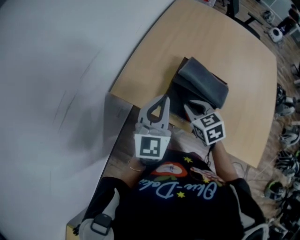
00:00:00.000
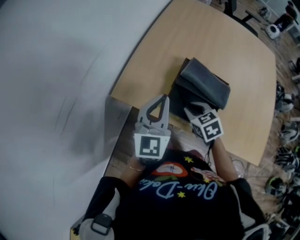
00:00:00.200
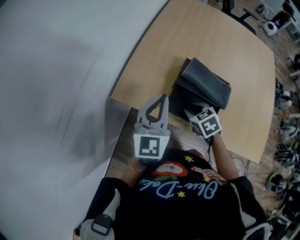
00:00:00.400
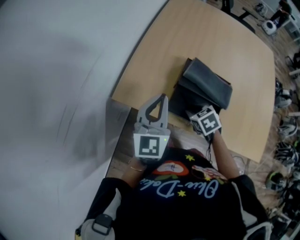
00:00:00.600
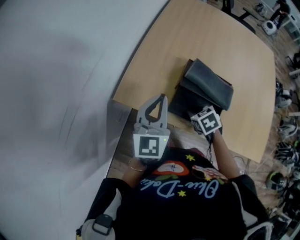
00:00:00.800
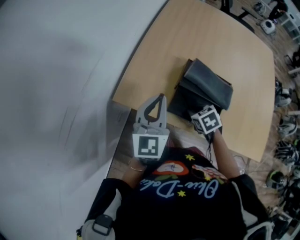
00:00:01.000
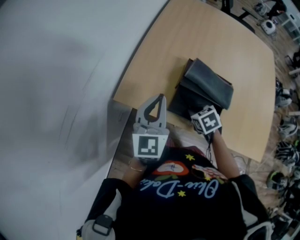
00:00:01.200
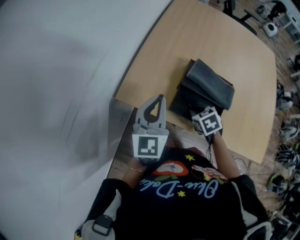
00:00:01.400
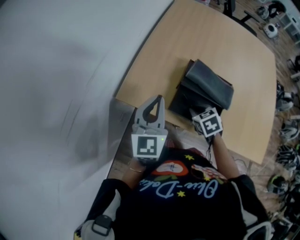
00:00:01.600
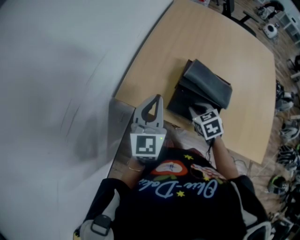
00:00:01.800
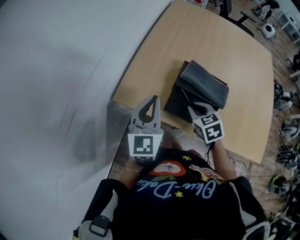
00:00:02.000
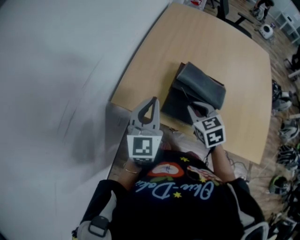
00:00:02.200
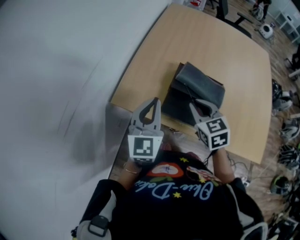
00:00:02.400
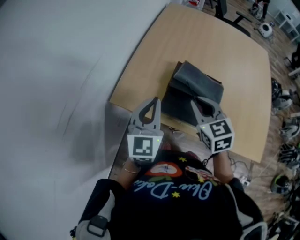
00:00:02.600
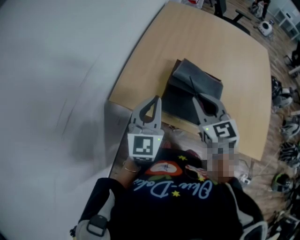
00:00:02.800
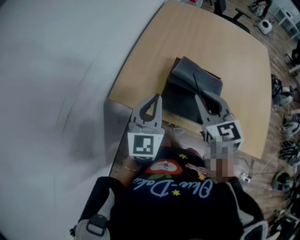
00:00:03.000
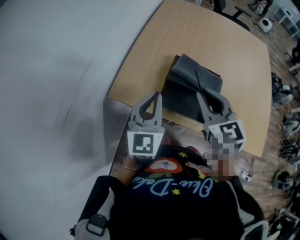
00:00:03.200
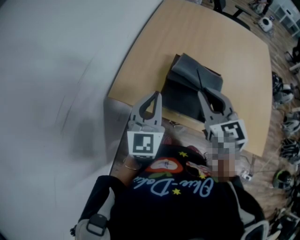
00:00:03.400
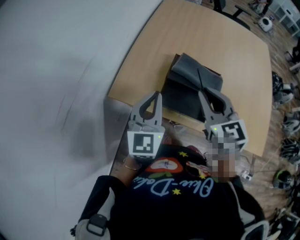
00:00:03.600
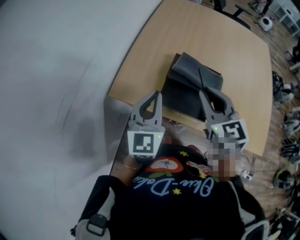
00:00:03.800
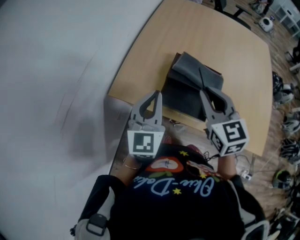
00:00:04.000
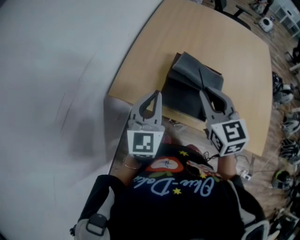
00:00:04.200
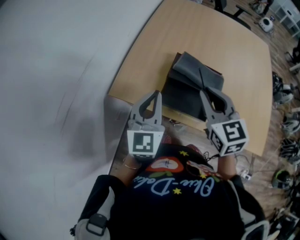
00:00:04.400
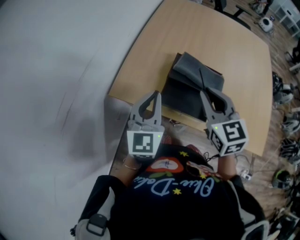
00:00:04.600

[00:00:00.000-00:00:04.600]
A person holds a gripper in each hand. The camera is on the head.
00:00:00.000 to 00:00:01.600: The left gripper shifts about 5 cm to the left, while the right gripper is displaced downward by approximately 5 cm.
00:00:01.600 to 00:00:03.000: The left gripper shifts by approximately 5 cm; the right gripper shifts about 20 cm upward, and points its fingers some 40 degrees further upward.
00:00:03.000 to 00:00:04.600: The two grippers keep their place.

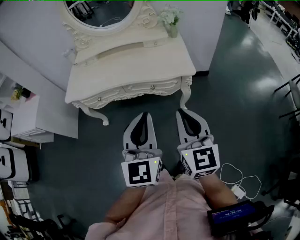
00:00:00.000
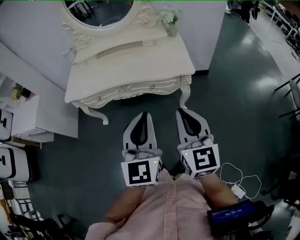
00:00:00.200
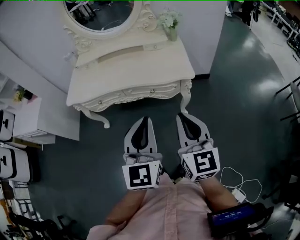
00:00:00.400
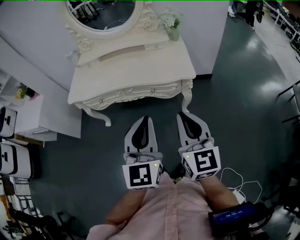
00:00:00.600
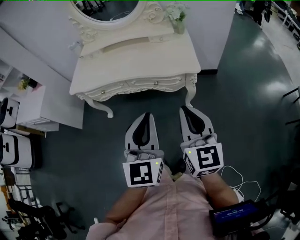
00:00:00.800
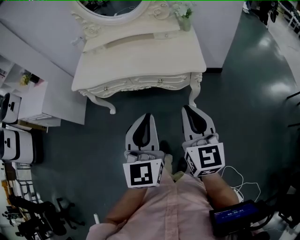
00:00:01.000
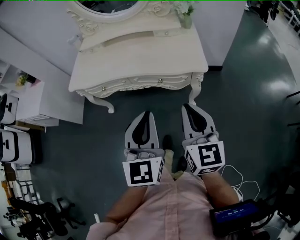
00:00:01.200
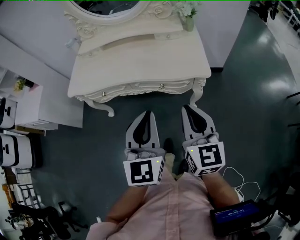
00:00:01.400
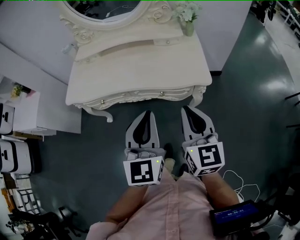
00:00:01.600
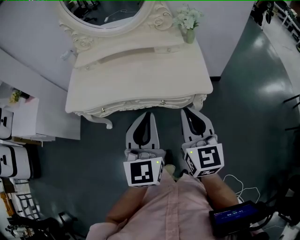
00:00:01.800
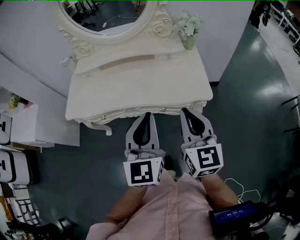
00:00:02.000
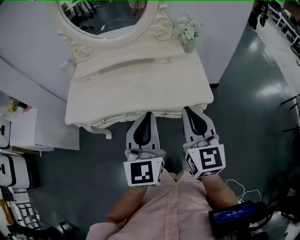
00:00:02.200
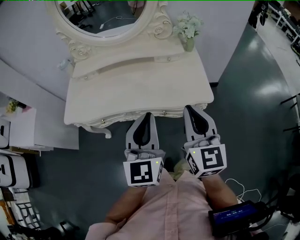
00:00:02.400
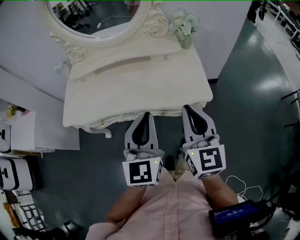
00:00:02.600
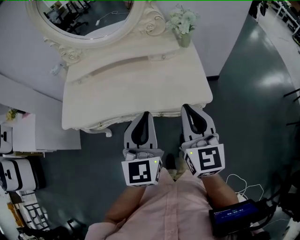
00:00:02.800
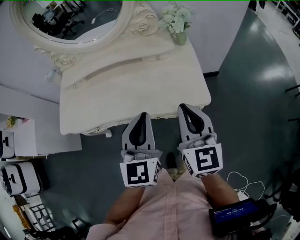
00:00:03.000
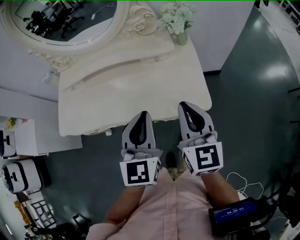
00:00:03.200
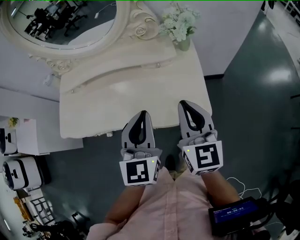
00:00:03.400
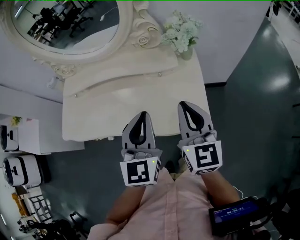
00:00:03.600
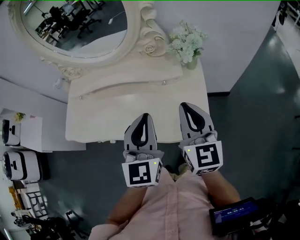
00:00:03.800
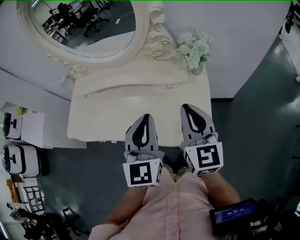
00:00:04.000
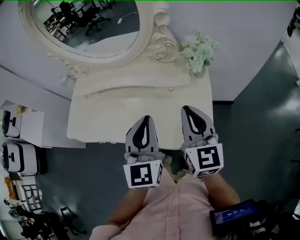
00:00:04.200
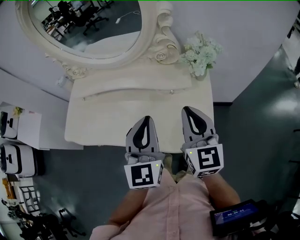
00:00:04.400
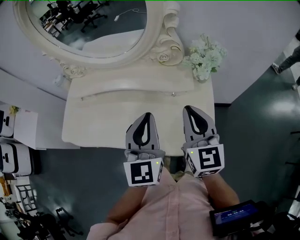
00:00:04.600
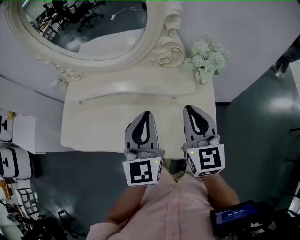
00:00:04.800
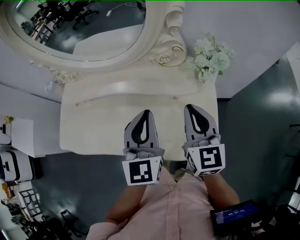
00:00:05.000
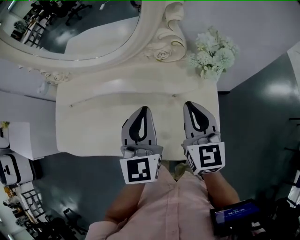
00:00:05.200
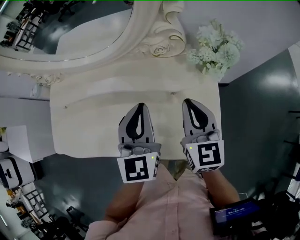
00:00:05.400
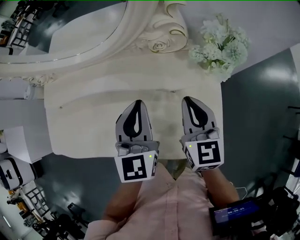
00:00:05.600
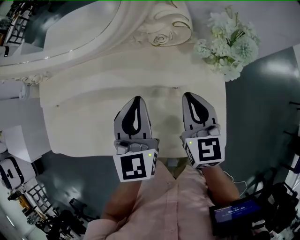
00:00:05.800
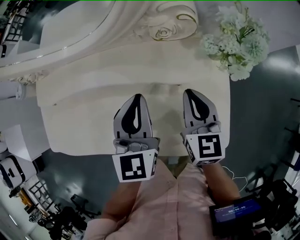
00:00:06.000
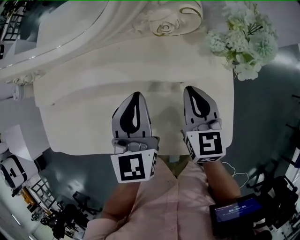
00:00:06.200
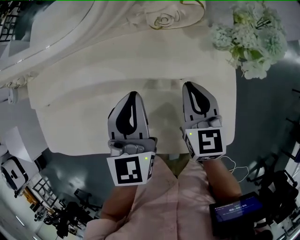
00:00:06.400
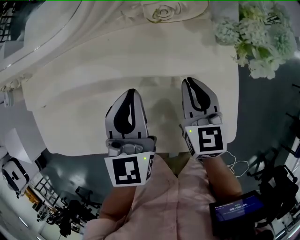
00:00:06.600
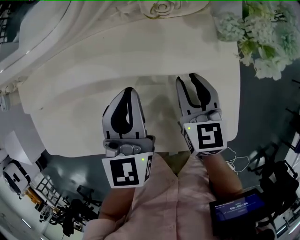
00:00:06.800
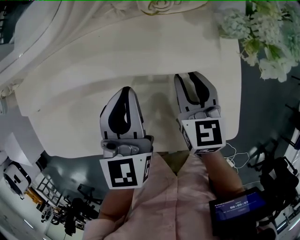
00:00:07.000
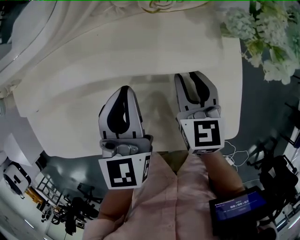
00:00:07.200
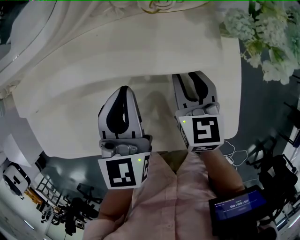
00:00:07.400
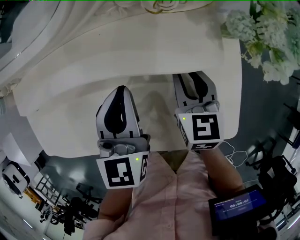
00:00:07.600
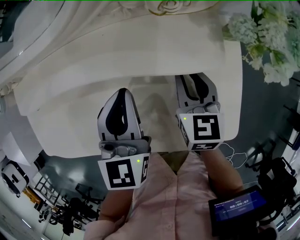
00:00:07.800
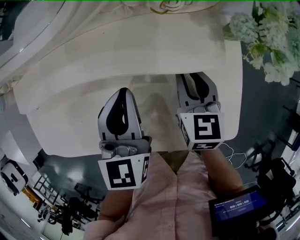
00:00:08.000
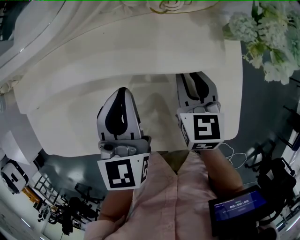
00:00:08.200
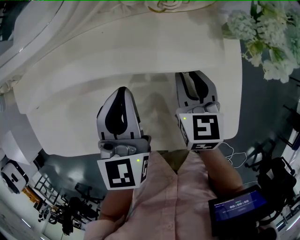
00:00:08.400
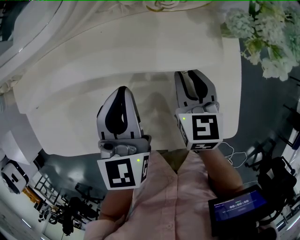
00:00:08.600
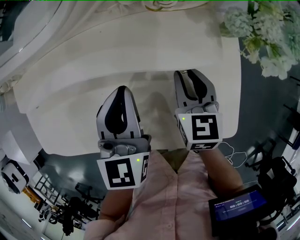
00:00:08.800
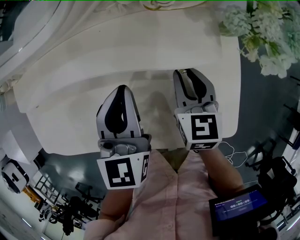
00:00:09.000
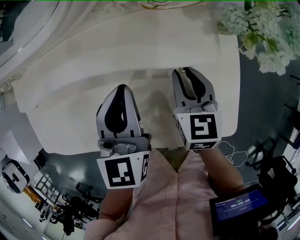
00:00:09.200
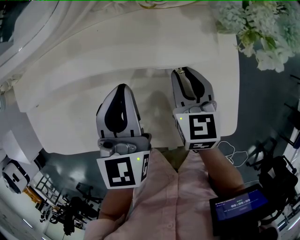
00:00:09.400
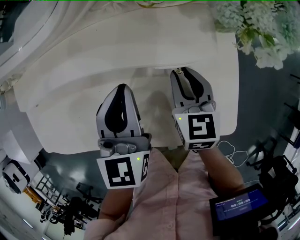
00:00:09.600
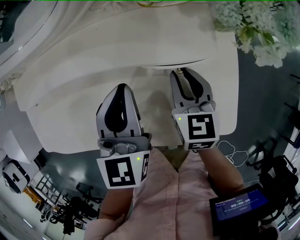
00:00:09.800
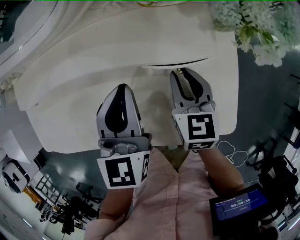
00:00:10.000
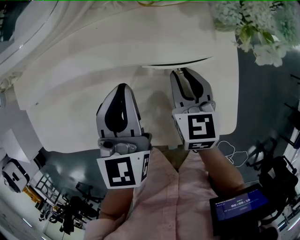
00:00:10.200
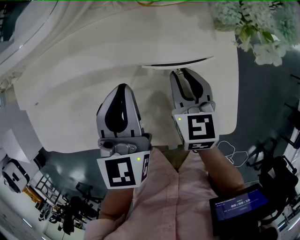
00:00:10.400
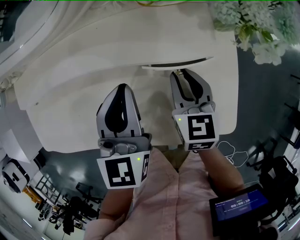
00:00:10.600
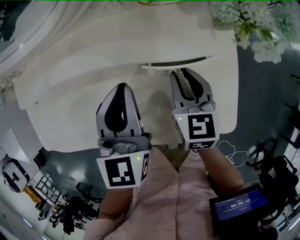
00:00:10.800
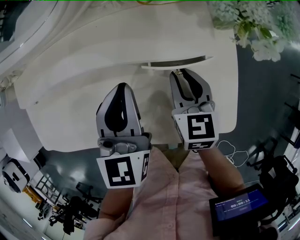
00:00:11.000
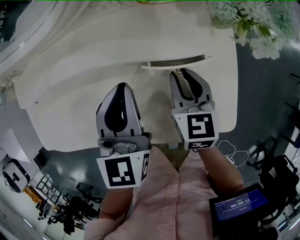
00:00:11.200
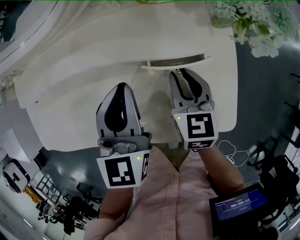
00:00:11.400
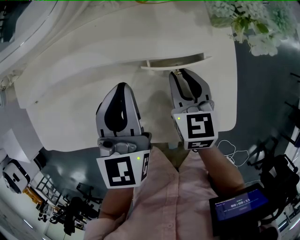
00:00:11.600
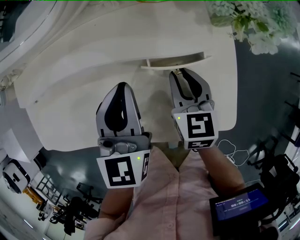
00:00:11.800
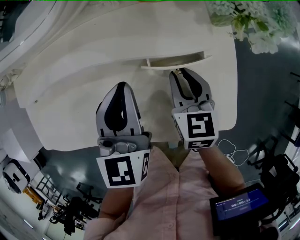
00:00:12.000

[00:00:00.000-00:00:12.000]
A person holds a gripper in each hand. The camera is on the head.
00:00:00.000 to 00:00:01.600: The two grippers go about 15 cm forward.
00:00:01.600 to 00:00:03.000: Both grippers travel together forward, about 15 cm.
00:00:03.000 to 00:00:04.400: Both grippers travel together forward, about 15 cm.
00:00:04.400 to 00:00:06.000: The left gripper moves forward and downward, roughly 20 cm; the right gripper travels downward and forward by some 20 cm, and changes its angle by some 20 degrees.
00:00:06.000 to 00:00:07.600: The two grippers go about 5 cm downward. The right gripper opens.
00:00:07.600 to 00:00:09.000: Neither gripper changes place.
00:00:09.000 to 00:00:12.000: There are only small adjustments of the grippers.

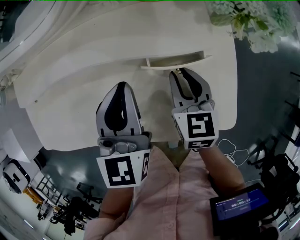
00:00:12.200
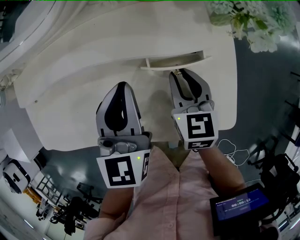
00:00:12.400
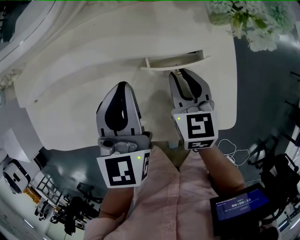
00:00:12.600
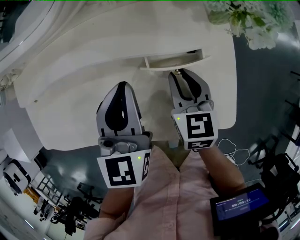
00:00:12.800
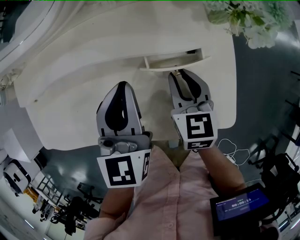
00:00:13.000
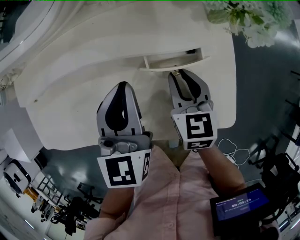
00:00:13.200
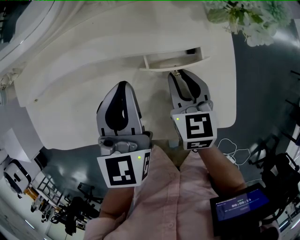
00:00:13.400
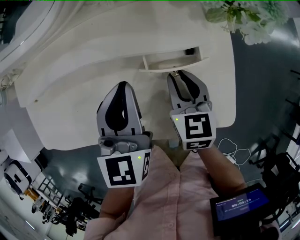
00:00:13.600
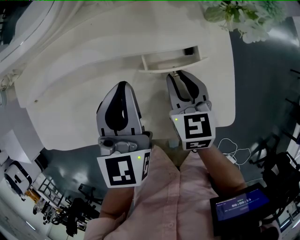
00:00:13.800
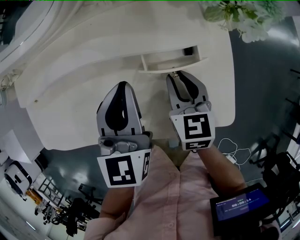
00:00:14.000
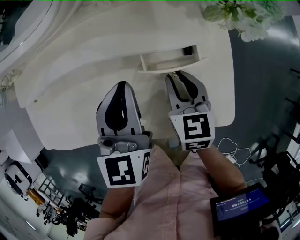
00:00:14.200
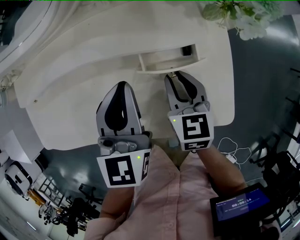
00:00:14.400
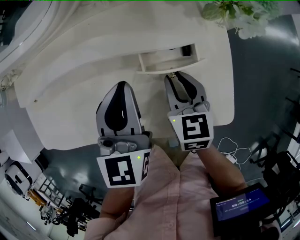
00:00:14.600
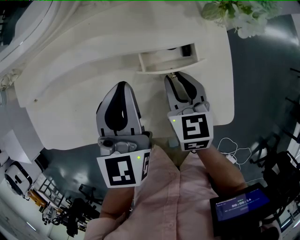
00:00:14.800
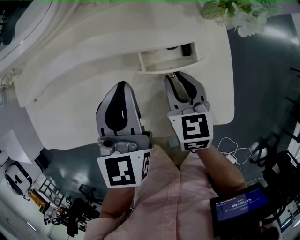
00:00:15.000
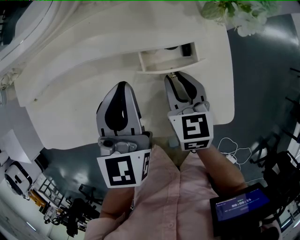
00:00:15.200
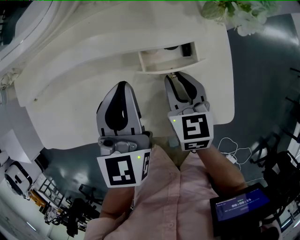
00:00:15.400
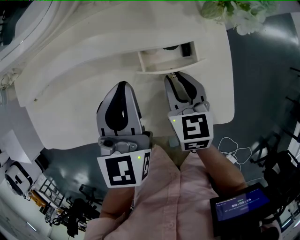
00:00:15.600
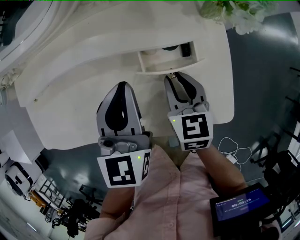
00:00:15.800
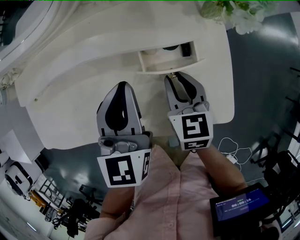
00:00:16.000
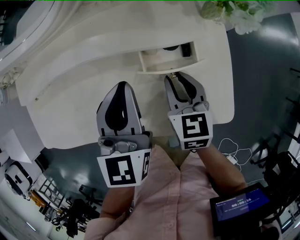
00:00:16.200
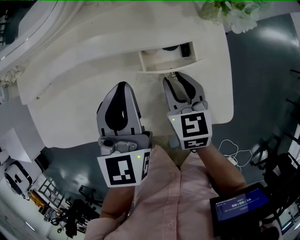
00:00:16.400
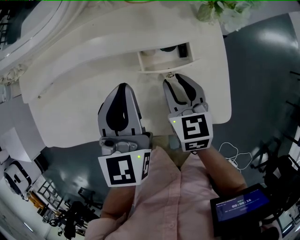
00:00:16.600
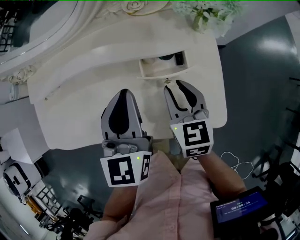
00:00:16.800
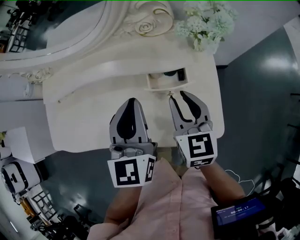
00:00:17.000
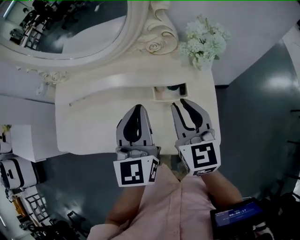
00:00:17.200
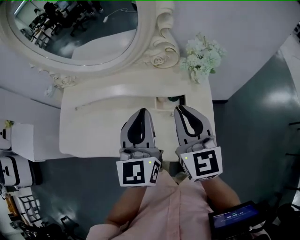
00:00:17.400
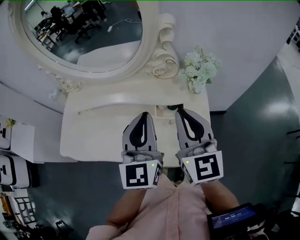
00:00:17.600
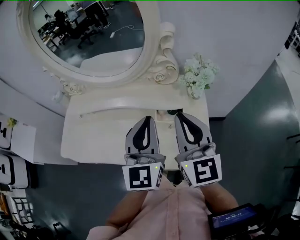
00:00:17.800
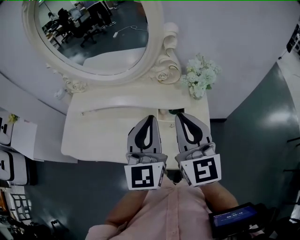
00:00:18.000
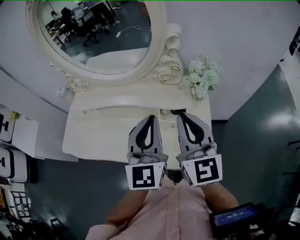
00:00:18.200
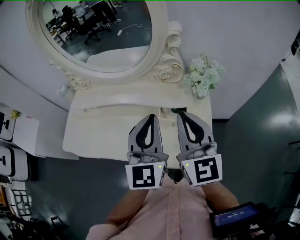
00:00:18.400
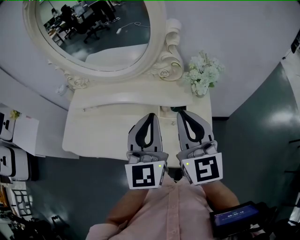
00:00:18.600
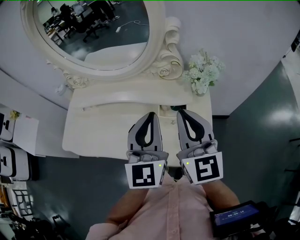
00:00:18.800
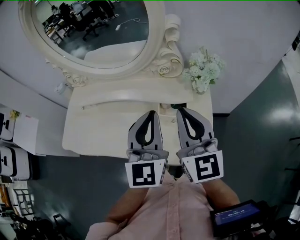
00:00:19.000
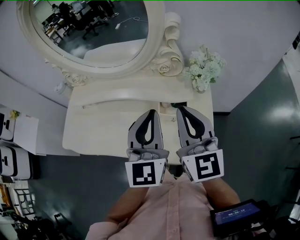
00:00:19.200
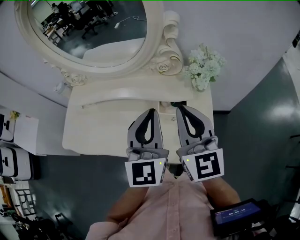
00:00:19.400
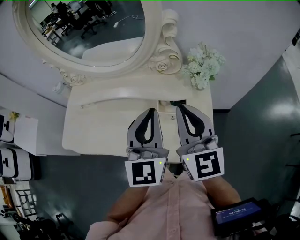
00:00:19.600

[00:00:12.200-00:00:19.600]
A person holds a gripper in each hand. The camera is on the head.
00:00:12.200 to 00:00:13.600: There are only small adjustments of the grippers.
00:00:13.600 to 00:00:15.200: Neither gripper changes place.
00:00:15.200 to 00:00:16.600: The grippers move only a little.
00:00:16.600 to 00:00:18.200: The left gripper goes roughly 20 cm upward and backward, and changes its angle by about 20 degrees. Meanwhile the right gripper moves upward, some 30 cm, angles its fingers upward, by about 40 degrees, and closes.
00:00:18.200 to 00:00:19.600: The grippers stay close to where they were, moving slightly.
